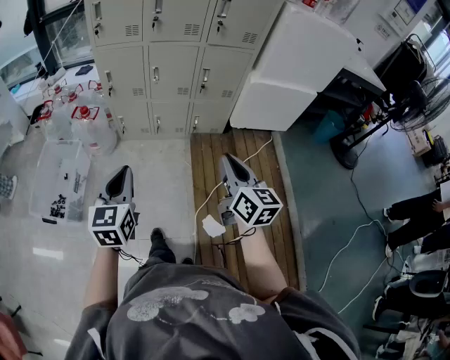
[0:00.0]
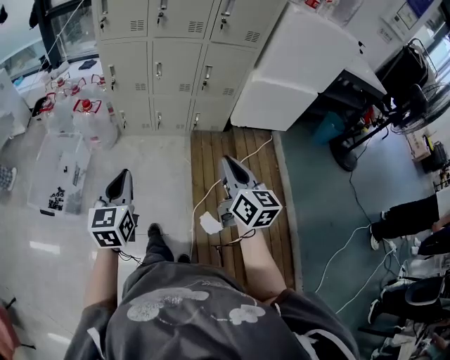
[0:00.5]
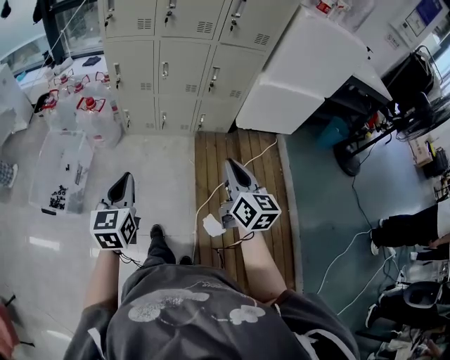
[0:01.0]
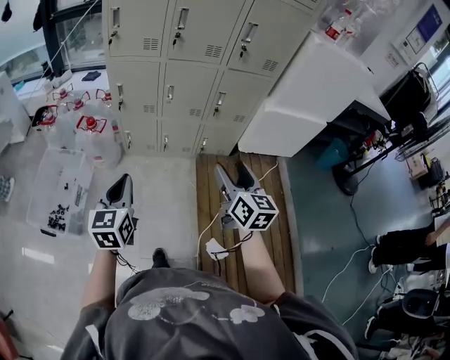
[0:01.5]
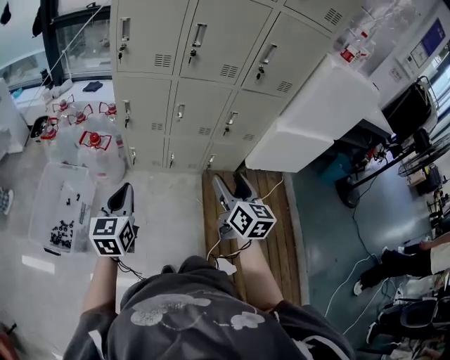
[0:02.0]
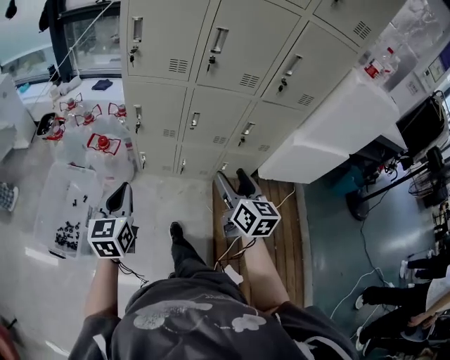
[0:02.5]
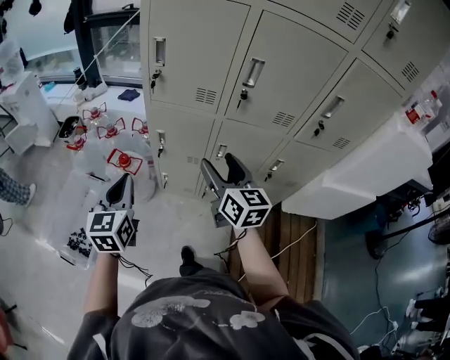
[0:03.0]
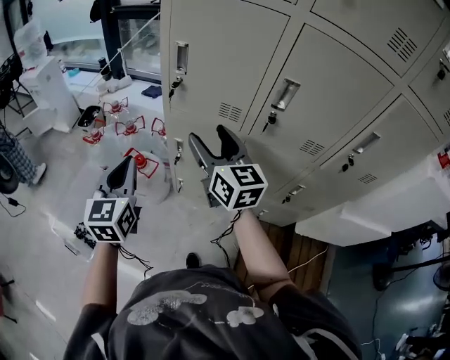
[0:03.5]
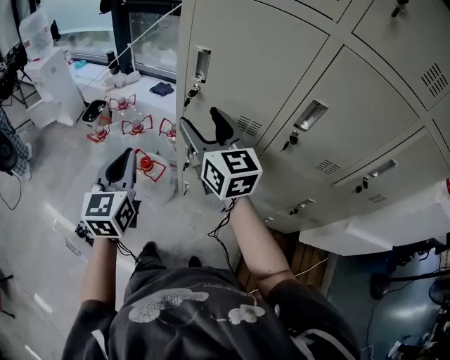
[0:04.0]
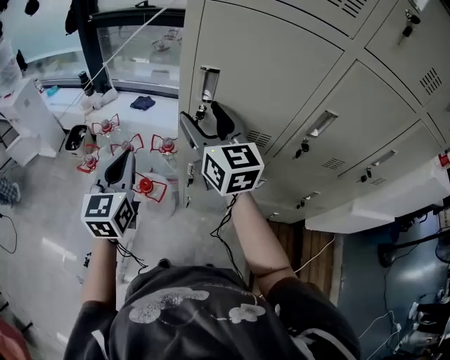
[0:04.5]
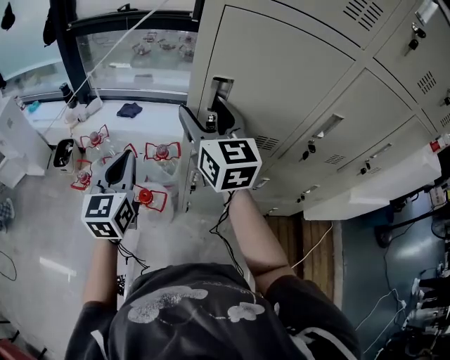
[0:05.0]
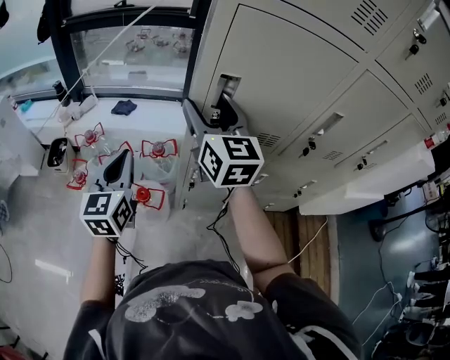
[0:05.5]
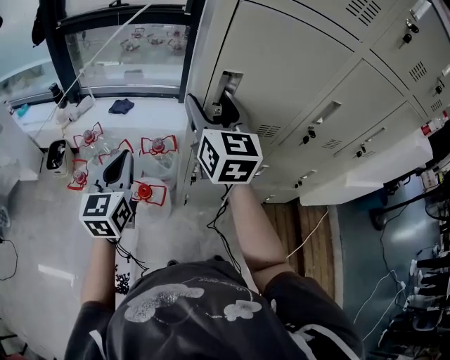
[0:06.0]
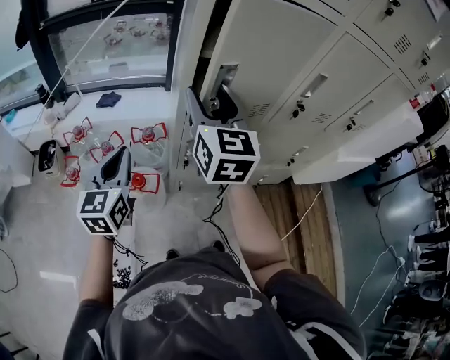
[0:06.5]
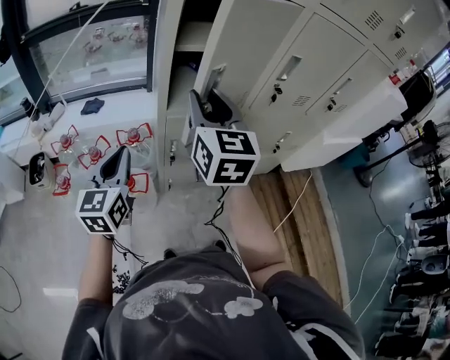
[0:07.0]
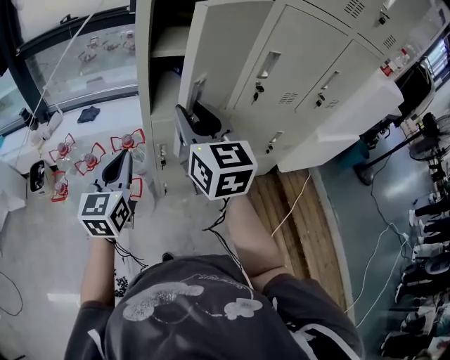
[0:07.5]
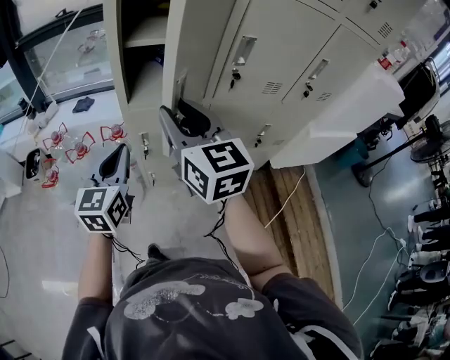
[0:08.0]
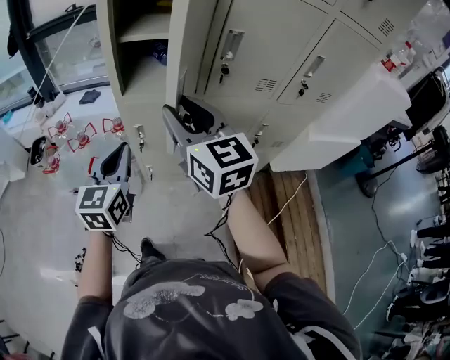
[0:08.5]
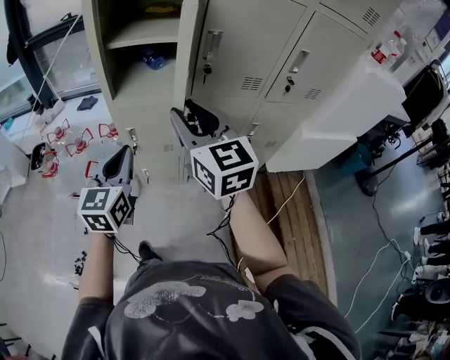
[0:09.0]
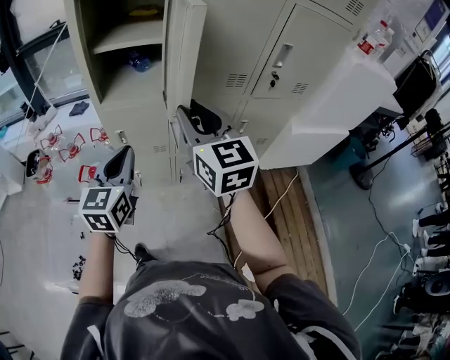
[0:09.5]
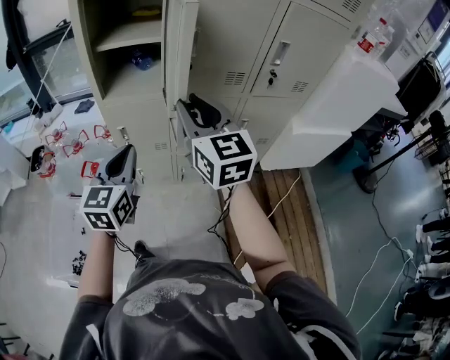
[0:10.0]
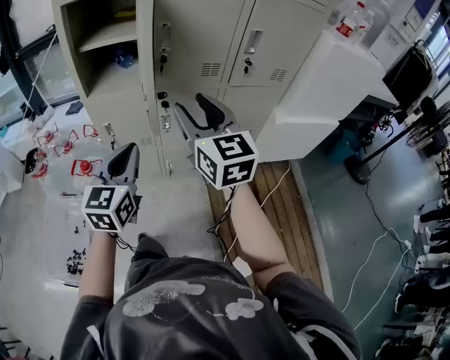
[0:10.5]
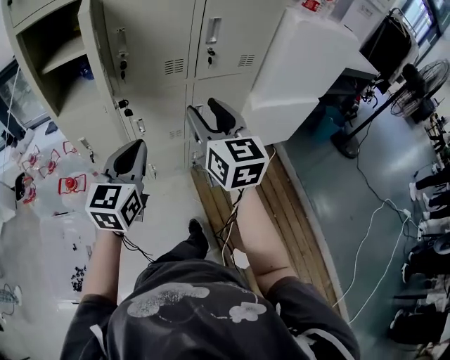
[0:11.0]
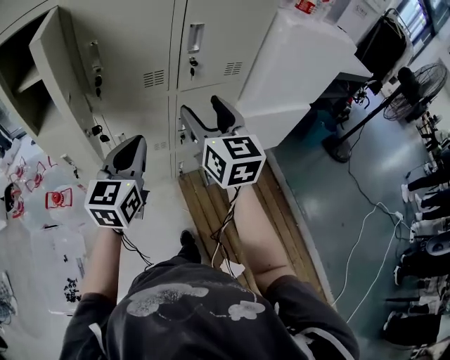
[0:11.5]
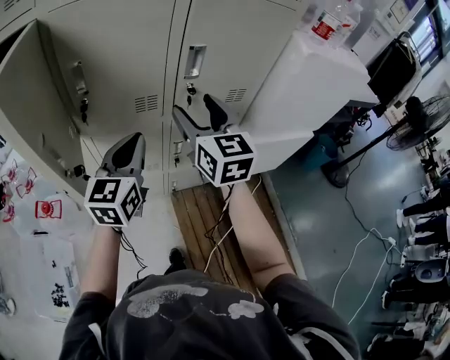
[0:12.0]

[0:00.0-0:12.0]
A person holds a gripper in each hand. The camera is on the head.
0.0 to 2.0 s: The two grippers go about 25 cm forward and to the left. The right gripper opens its fingers.
2.0 to 4.0 s: The left gripper changes place by roughly 35 cm, and rotates some 20 degrees, while the right gripper moves approximately 50 cm, and changes its angle by approximately 40 degrees.
4.0 to 6.0 s: The left gripper ends up roughly 20 cm from where it was, and swivels roughly 20 degrees; the right gripper shifts by some 15 cm, and swivels some 30 degrees.
6.0 to 8.0 s: The left gripper shifts roughly 20 cm to the right and backward; the right gripper travels backward and to the right by approximately 20 cm, and closes its fingers.
8.0 to 10.0 s: Both grippers move to the right and backward, about 20 cm.
10.0 to 12.0 s: Both grippers move to the right and forward, approximately 30 cm. The right gripper opens up.

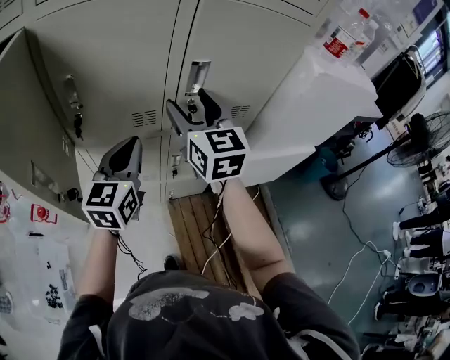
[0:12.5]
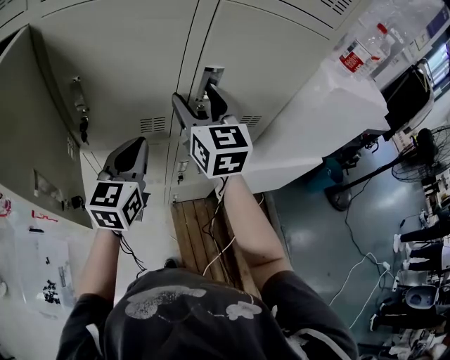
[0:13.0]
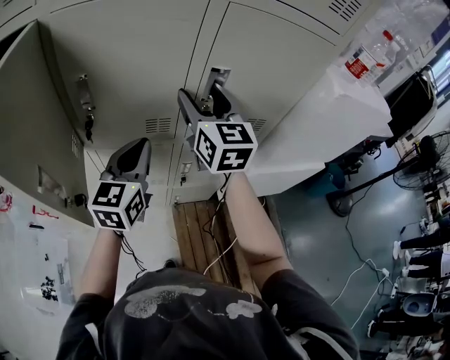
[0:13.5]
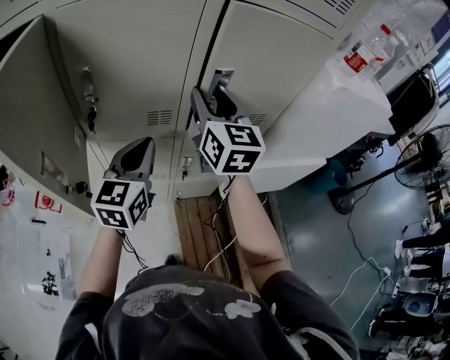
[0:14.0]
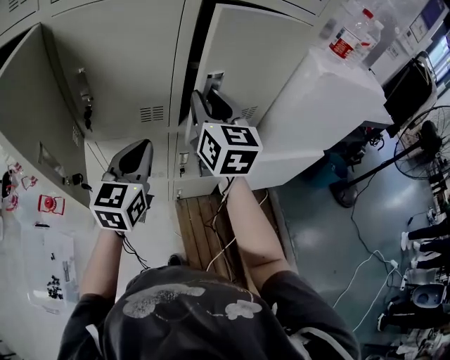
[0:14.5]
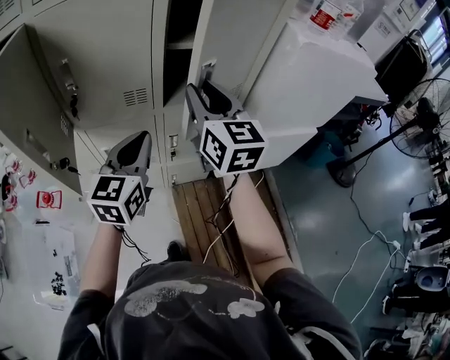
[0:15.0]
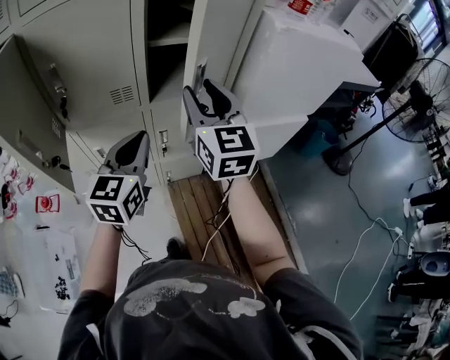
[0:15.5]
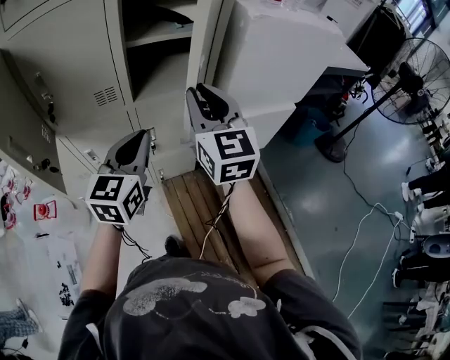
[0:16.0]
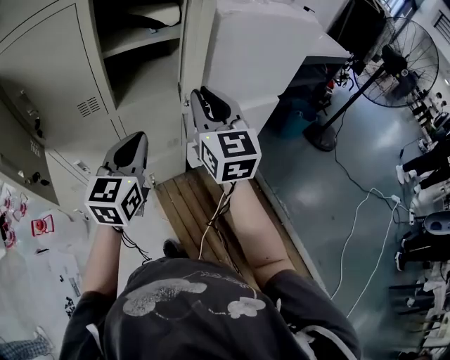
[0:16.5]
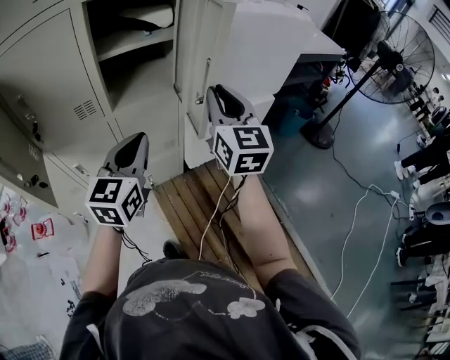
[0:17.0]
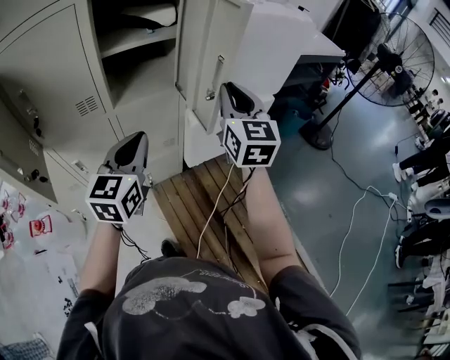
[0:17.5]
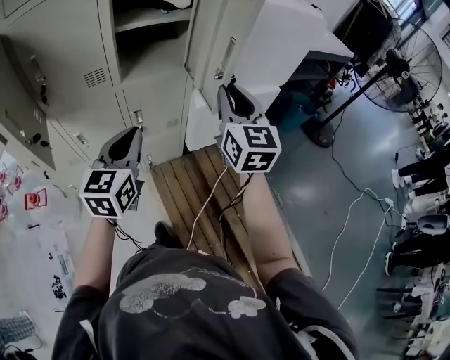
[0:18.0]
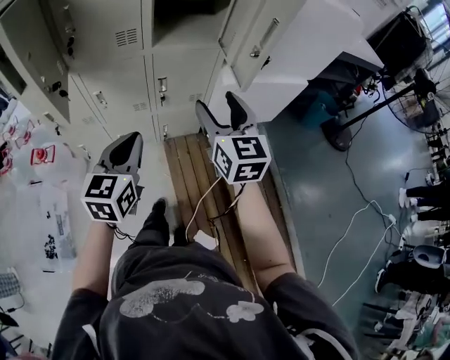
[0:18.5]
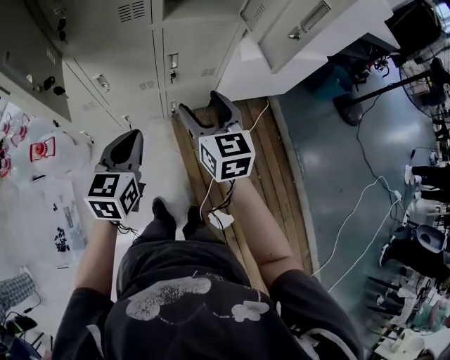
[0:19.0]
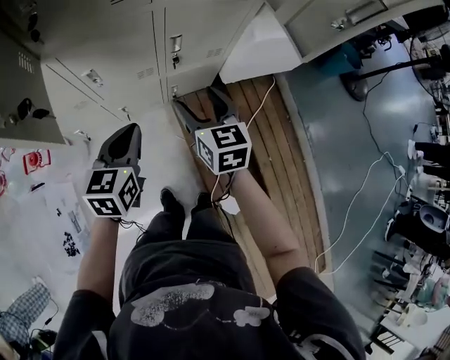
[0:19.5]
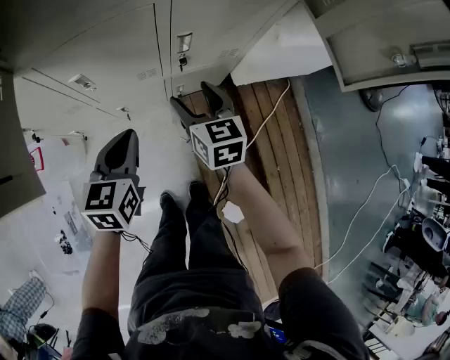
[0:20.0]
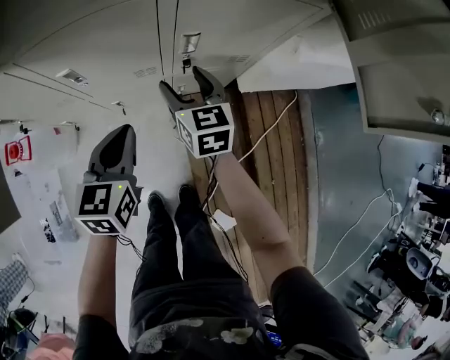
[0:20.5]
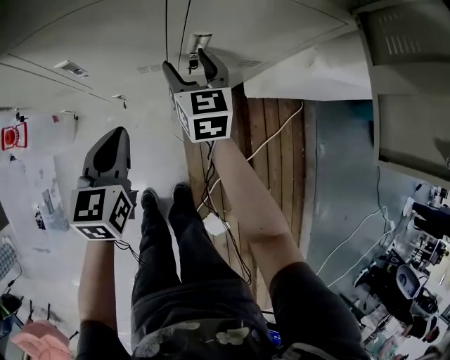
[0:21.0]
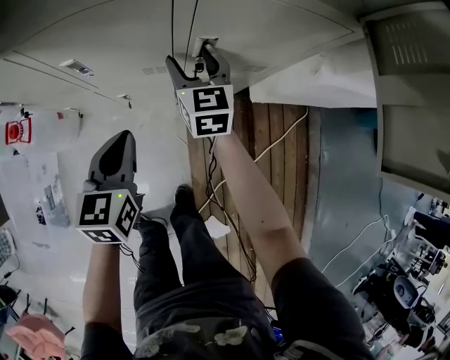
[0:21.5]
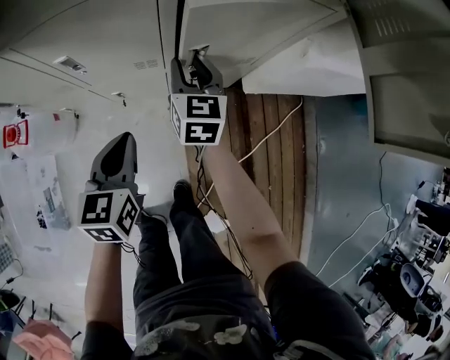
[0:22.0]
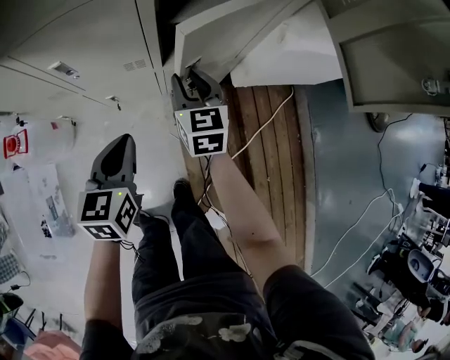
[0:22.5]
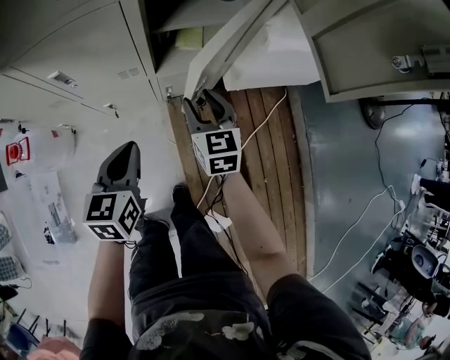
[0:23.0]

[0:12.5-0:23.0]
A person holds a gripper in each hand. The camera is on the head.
12.5 to 14.5 s: The right gripper closes.
14.5 to 16.5 s: Both grippers move to the right and backward, roughly 20 cm.
16.5 to 19.0 s: The right gripper heads downward and to the left, covering approximately 25 cm, swivels approximately 20 degrees, and opens. Meanwhile the left gripper heads downward, to the left and backward, covering about 25 cm, and turns by approximately 20 degrees.
19.0 to 21.0 s: The right gripper heads forward and downward, covering about 35 cm. The left gripper is displaced downward and forward by roughly 25 cm.
21.0 to 23.0 s: The left gripper shifts about 10 cm to the right and backward, while the right gripper moves backward and to the right, approximately 15 cm.

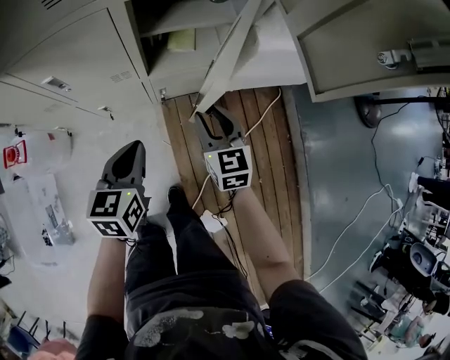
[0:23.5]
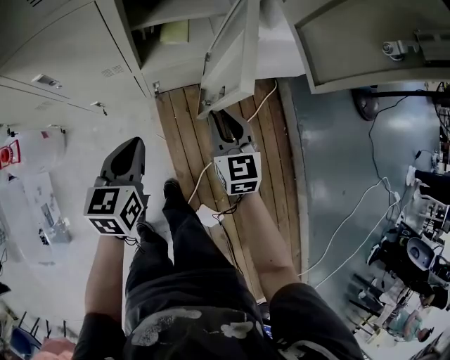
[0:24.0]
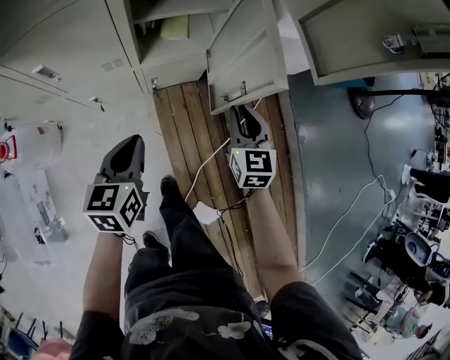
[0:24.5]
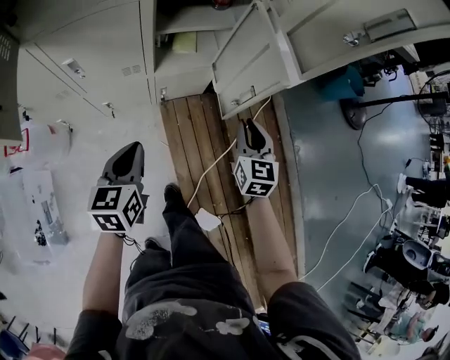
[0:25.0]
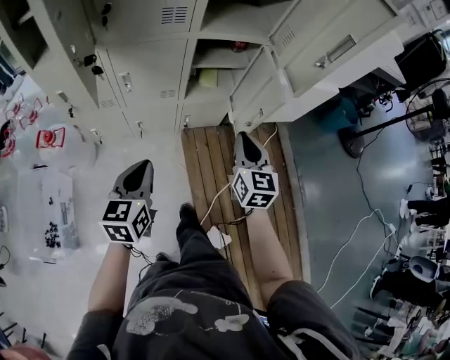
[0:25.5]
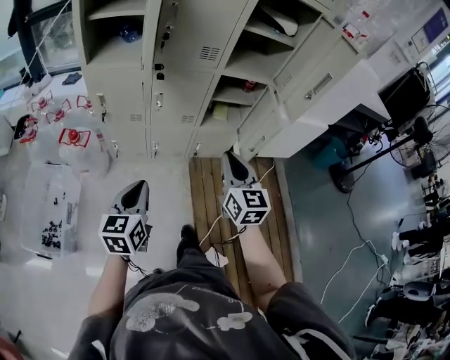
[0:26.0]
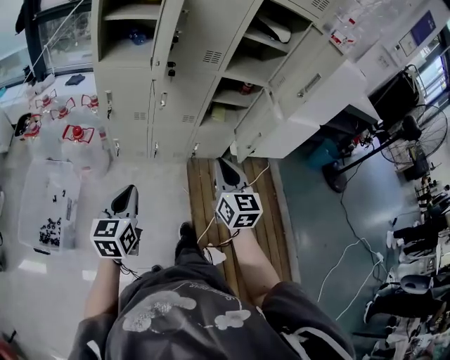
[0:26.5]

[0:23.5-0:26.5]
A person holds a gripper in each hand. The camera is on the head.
23.5 to 25.0 s: The left gripper goes some 5 cm backward. Meanwhile the right gripper goes some 10 cm to the right and backward.
25.0 to 26.5 s: The right gripper heads to the left, backward and upward, covering roughly 40 cm, and turns by about 30 degrees. Meanwhile the left gripper goes about 40 cm backward, to the left and upward.

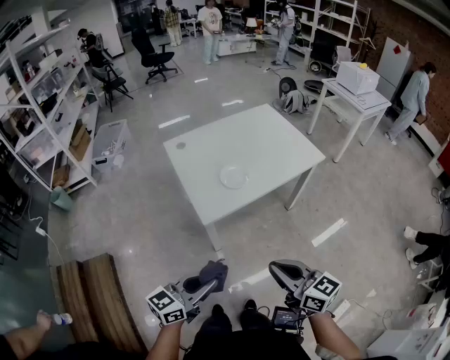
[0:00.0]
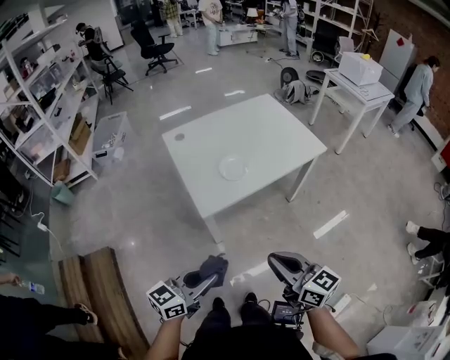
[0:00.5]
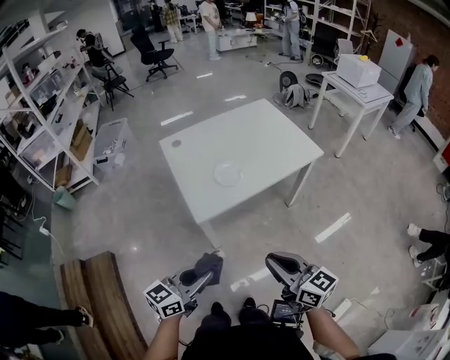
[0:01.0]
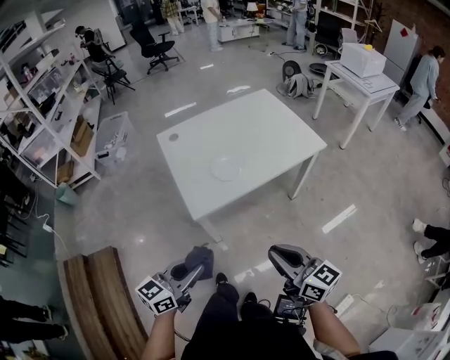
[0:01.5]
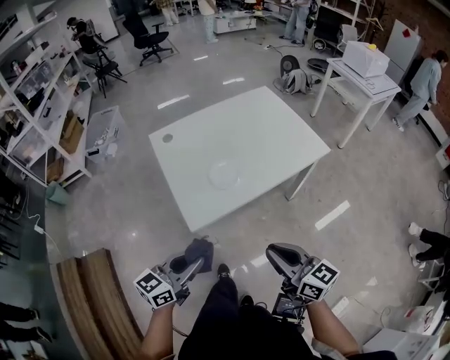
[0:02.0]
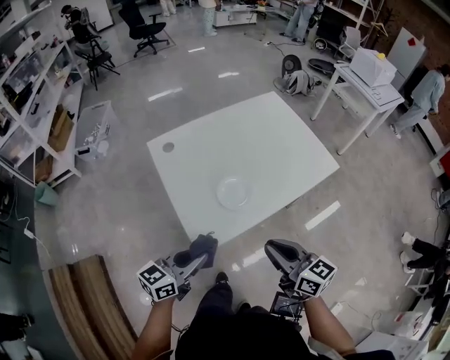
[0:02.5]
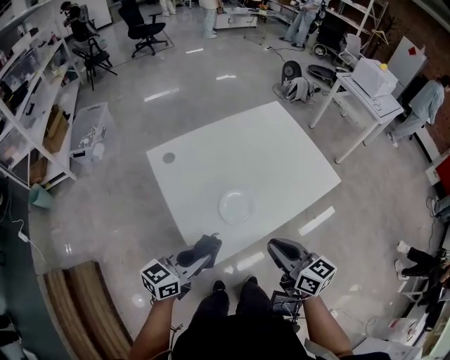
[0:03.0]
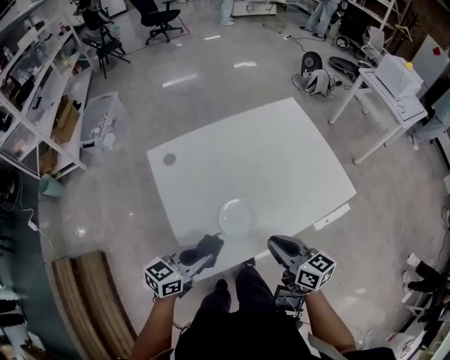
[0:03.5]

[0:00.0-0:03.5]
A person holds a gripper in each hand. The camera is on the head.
0.0 to 2.0 s: The grippers both shift forward by some 15 cm.
2.0 to 3.5 s: Both grippers travel together forward, approximately 30 cm.
